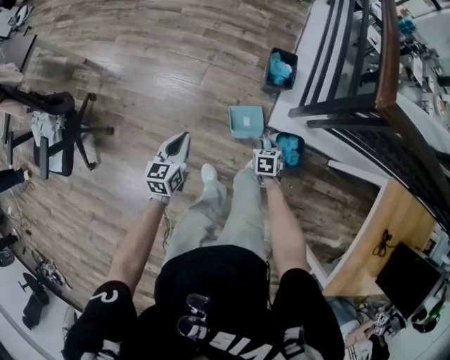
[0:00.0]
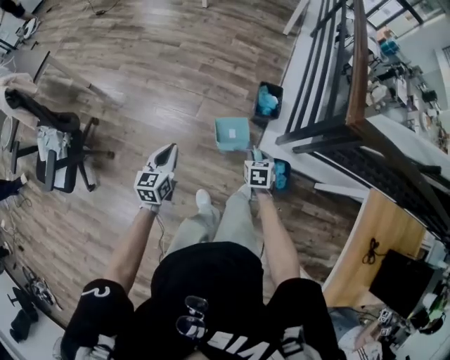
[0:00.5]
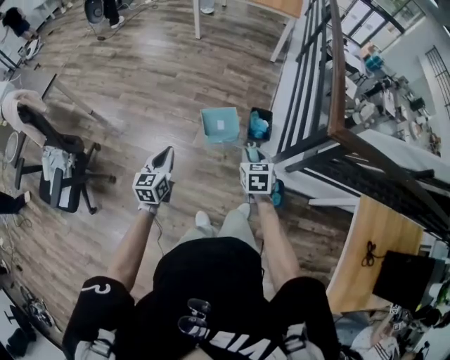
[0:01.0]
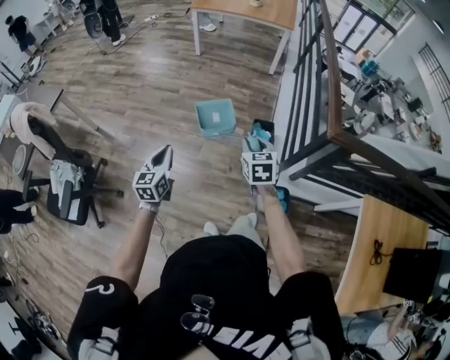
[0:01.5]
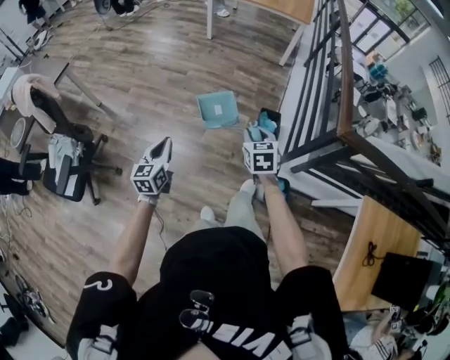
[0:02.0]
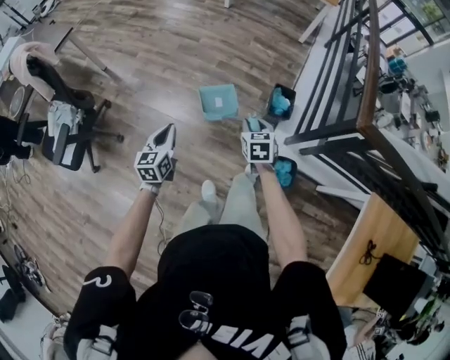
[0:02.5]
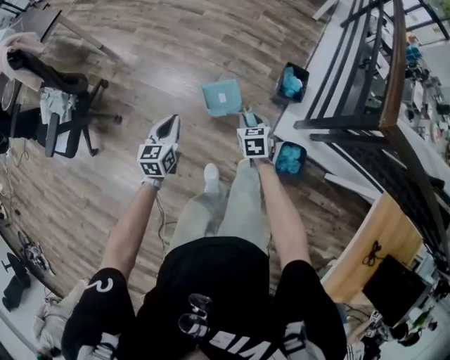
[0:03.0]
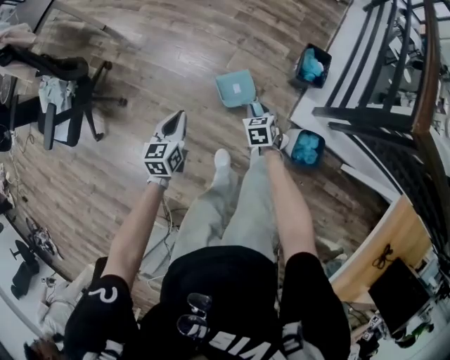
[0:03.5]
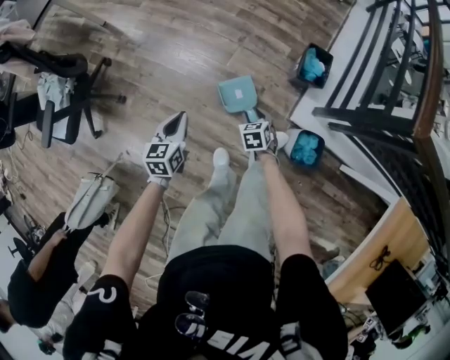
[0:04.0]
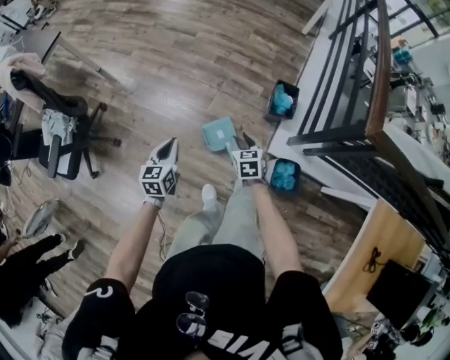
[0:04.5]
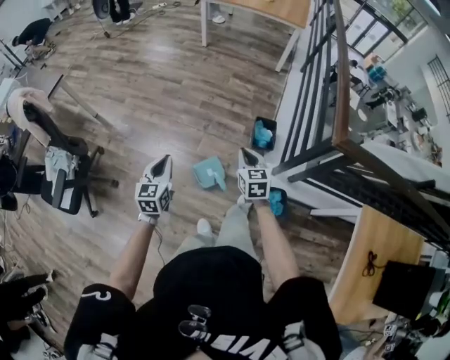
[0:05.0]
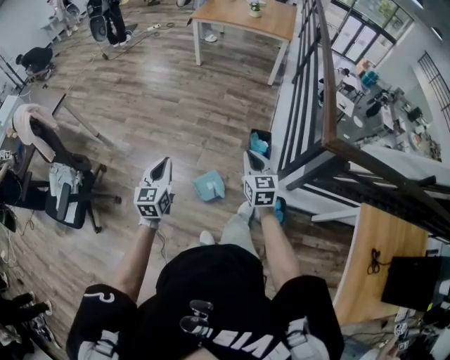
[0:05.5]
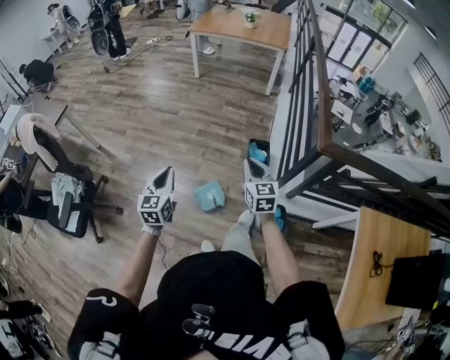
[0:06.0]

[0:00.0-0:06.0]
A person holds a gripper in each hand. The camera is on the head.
0:00.0 to 0:02.0: The right gripper goes some 40 cm upward and to the left, and rotates roughly 30 degrees; the left gripper goes some 25 cm upward and to the left.
0:02.0 to 0:04.0: The left gripper heads downward, covering approximately 25 cm, while the right gripper shifts approximately 40 cm downward, and changes its angle by roughly 20 degrees.
0:04.0 to 0:06.0: The left gripper moves upward, approximately 30 cm, and changes its angle by some 30 degrees, while the right gripper heads upward, covering about 50 cm, tips its fingers upward by roughly 40 degrees, and closes its fingers.

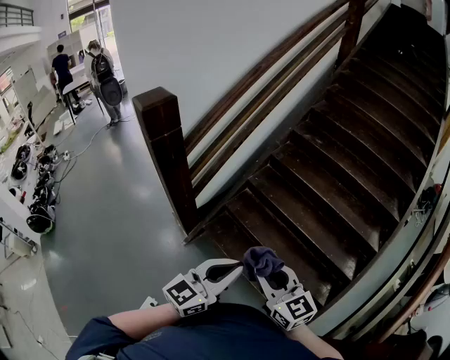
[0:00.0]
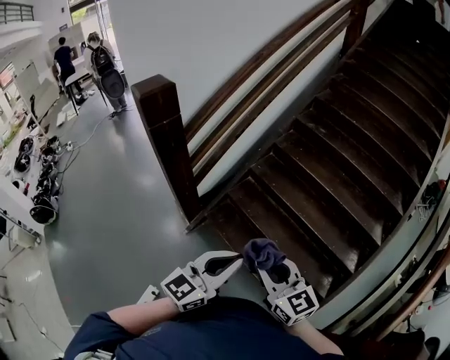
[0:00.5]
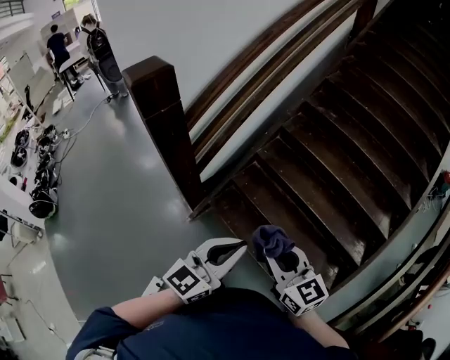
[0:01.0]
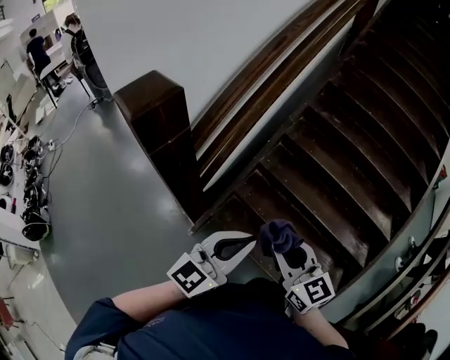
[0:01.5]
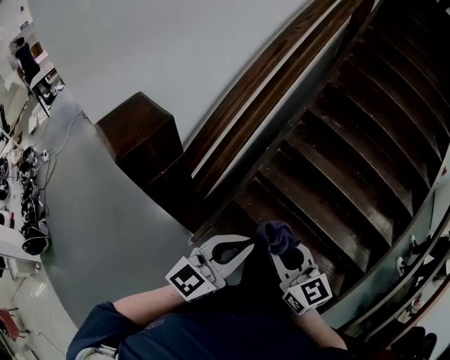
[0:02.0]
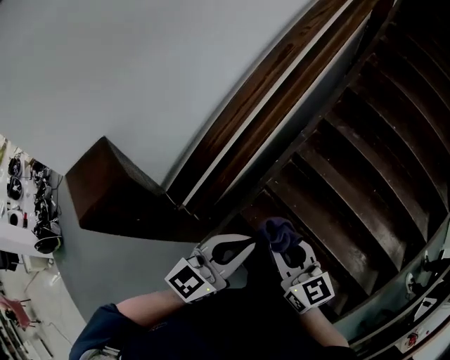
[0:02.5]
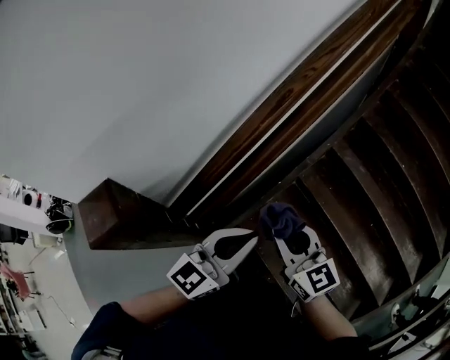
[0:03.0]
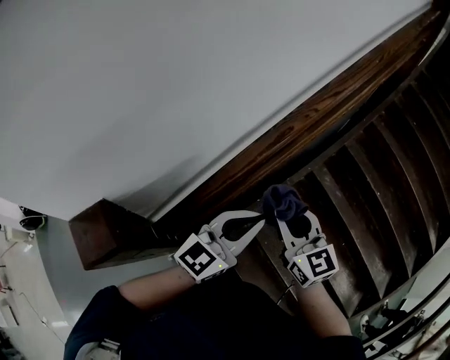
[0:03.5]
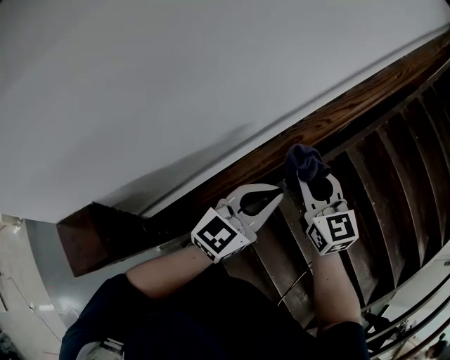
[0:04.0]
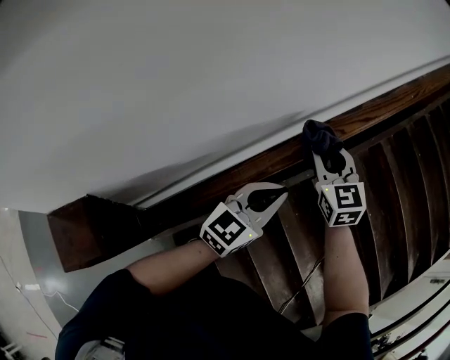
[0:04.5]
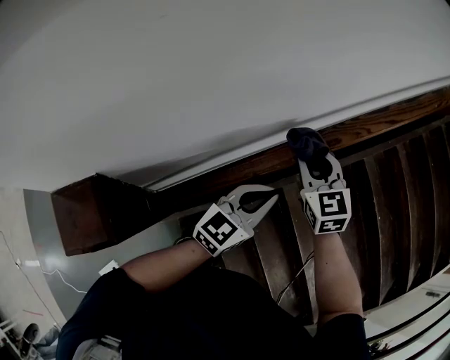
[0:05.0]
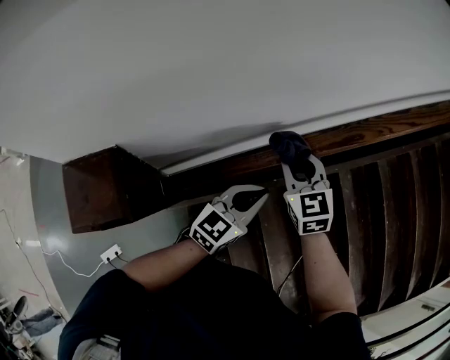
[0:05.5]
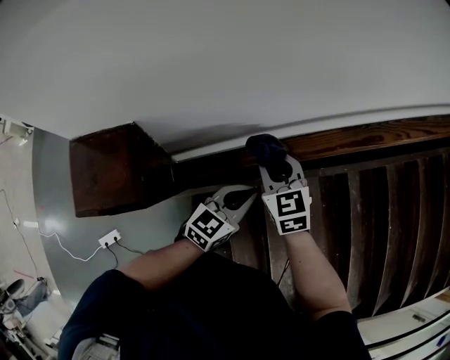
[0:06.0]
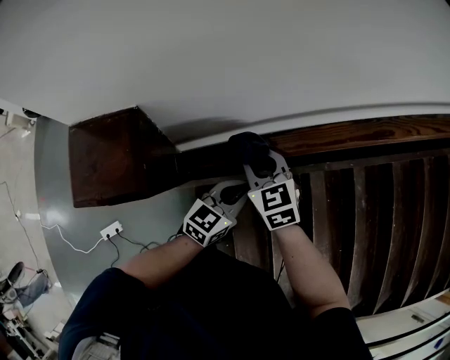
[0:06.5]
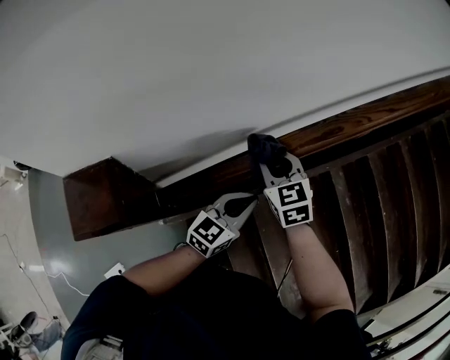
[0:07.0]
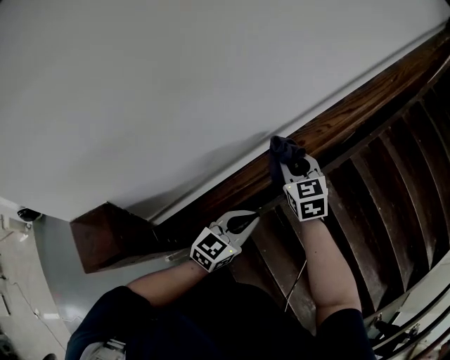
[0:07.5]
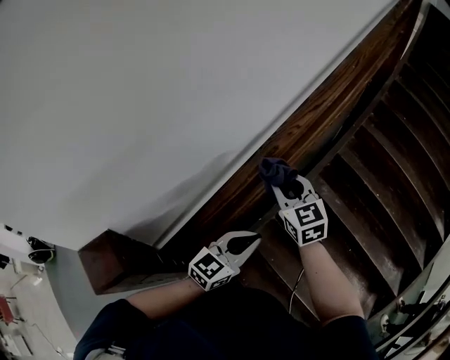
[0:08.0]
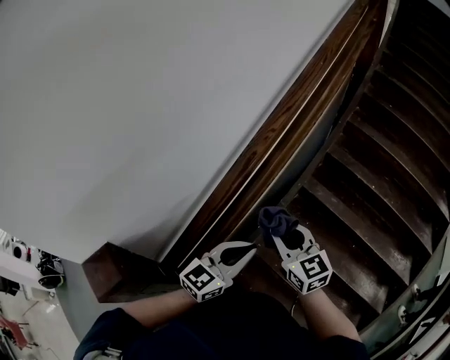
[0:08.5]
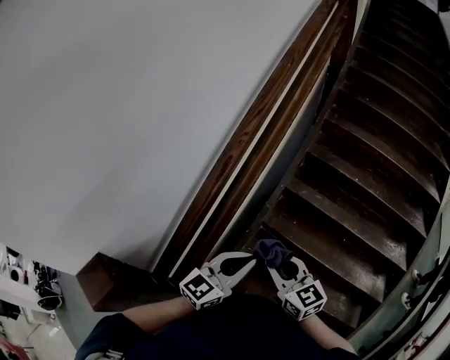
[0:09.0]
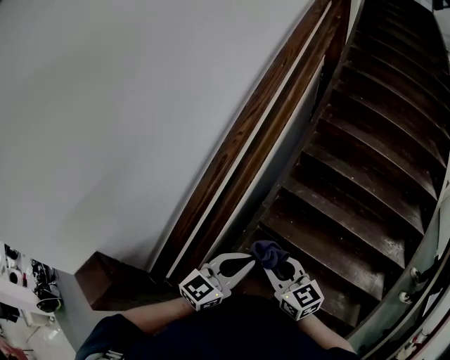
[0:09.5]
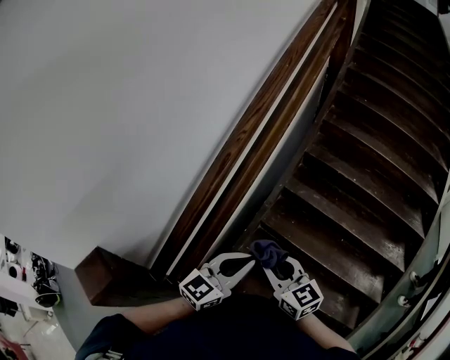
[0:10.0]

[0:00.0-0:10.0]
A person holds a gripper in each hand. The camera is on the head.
0:00.0 to 0:02.0: The grippers both shift forward and to the left by about 35 cm.
0:02.0 to 0:04.0: The two grippers travel together, forward, approximately 50 cm. The right gripper rotates roughly 20 degrees.
0:04.0 to 0:06.0: The right gripper shifts some 30 cm to the left and downward, and changes its angle by about 30 degrees. Meanwhile the left gripper goes roughly 25 cm downward and to the left, and turns by approximately 30 degrees.
0:06.0 to 0:08.0: The left gripper moves about 20 cm, and turns by about 30 degrees. Meanwhile the right gripper moves about 30 cm, and changes its angle by about 30 degrees.
0:08.0 to 0:10.0: The right gripper is displaced backward and to the right by some 25 cm, and turns by about 20 degrees. The left gripper goes about 10 cm to the right and backward.

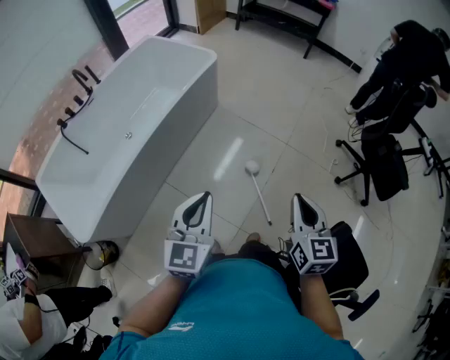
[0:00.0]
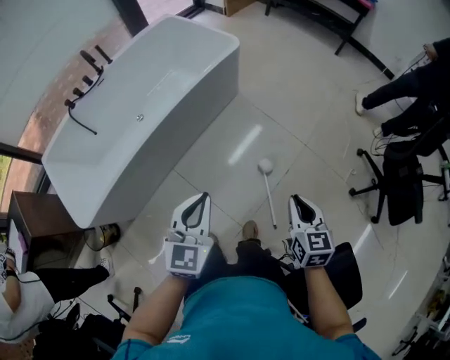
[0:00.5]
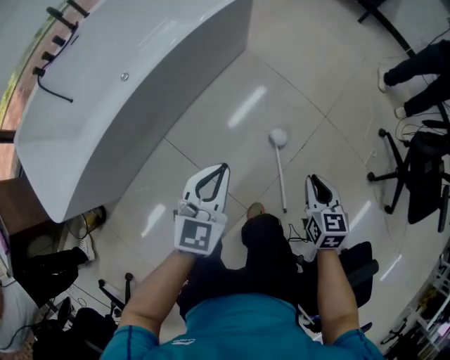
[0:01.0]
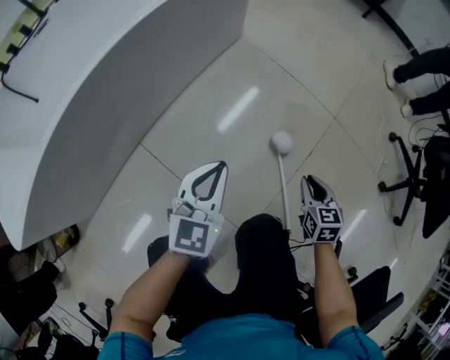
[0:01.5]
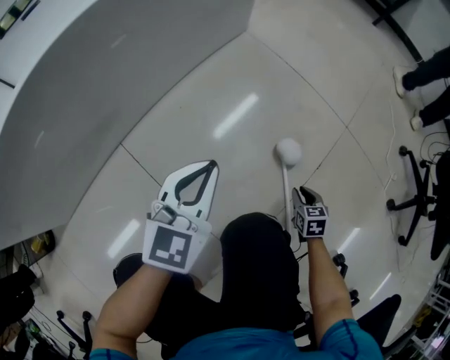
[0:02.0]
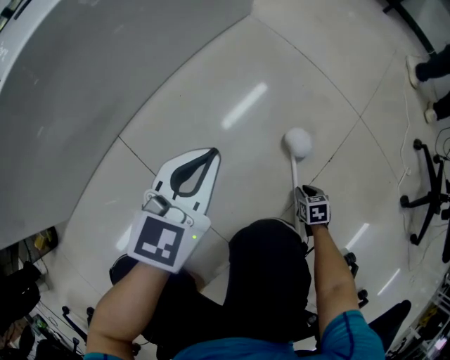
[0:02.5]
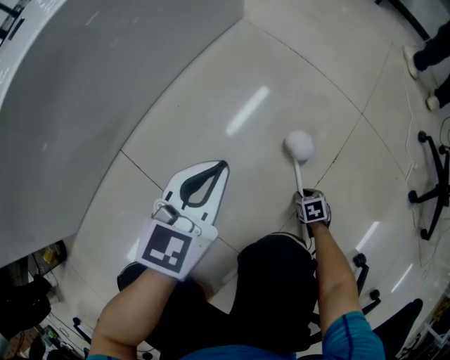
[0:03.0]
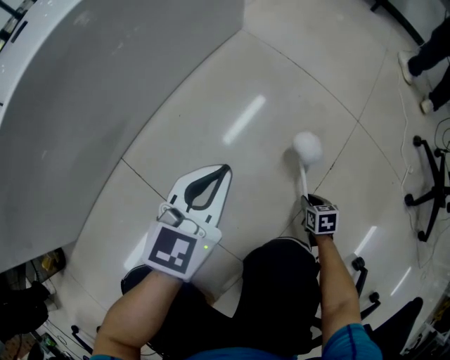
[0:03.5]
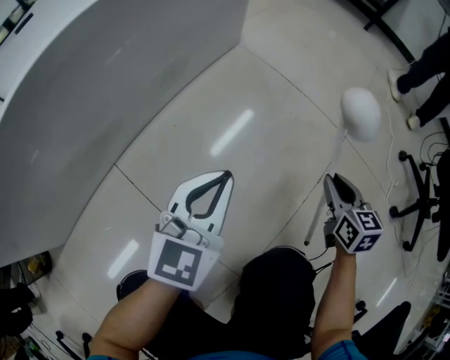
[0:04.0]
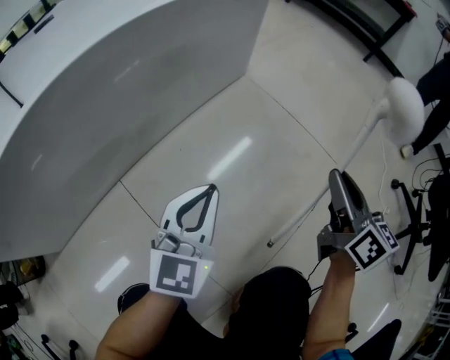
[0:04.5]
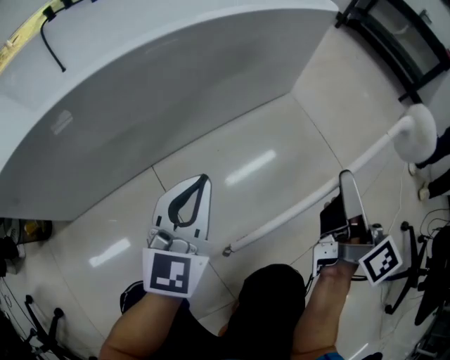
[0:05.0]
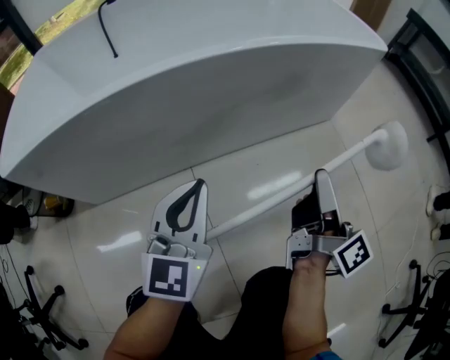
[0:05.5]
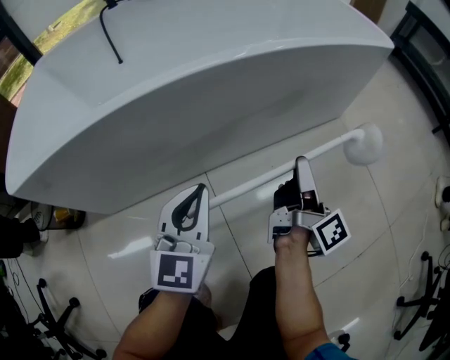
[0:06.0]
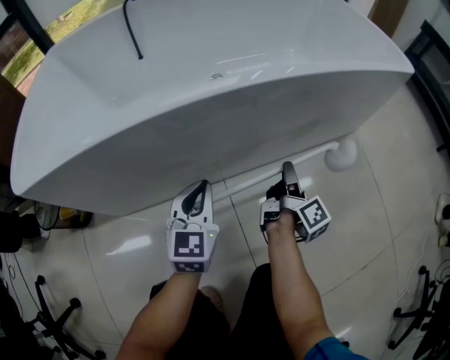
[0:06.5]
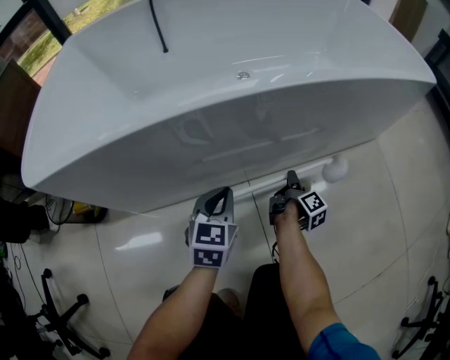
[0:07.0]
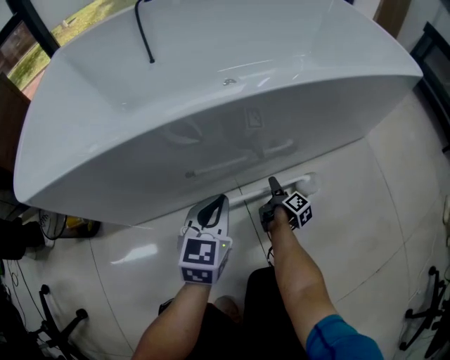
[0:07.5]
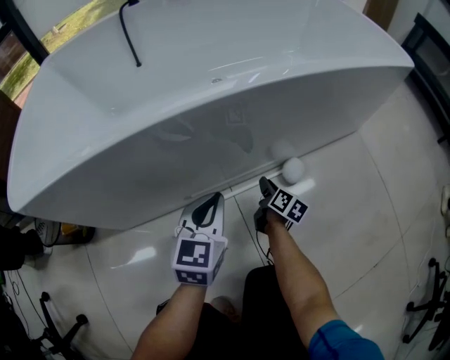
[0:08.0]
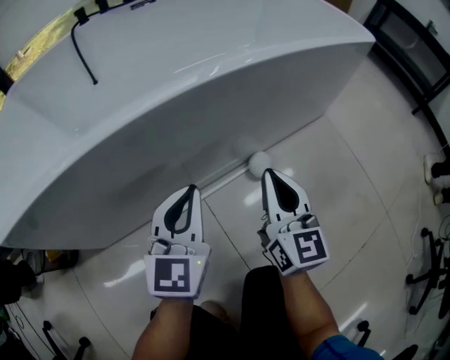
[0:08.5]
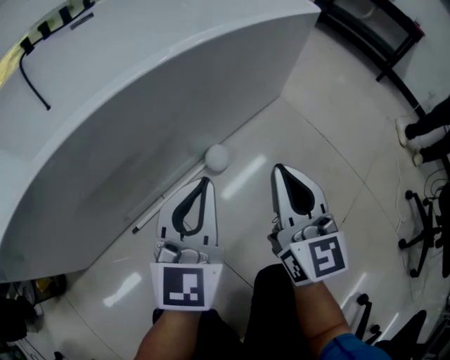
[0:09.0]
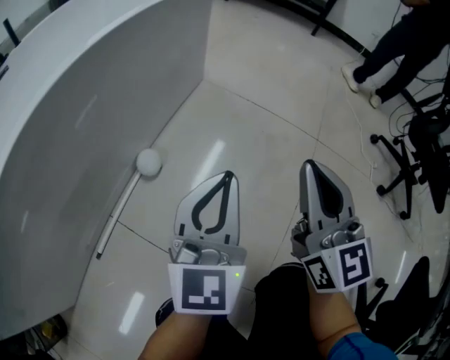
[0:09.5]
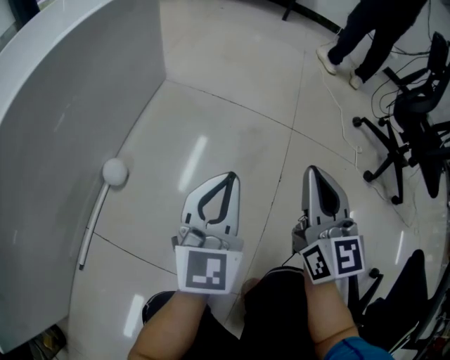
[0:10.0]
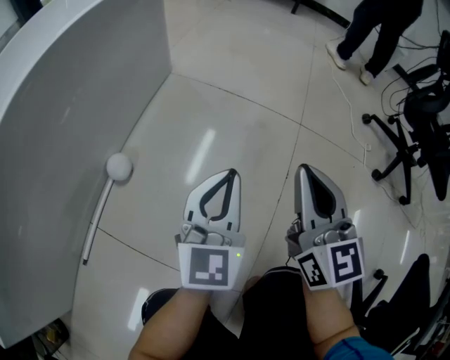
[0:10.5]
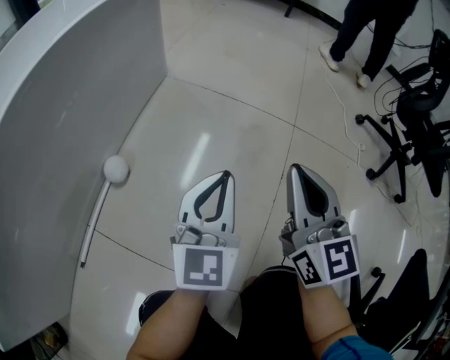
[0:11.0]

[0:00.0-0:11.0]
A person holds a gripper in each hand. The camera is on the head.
0:00.0 to 0:02.0: Both grippers travel together downward, about 70 cm. The right gripper points its fingers roughly 40 degrees further downward, and opens its fingers.
0:02.0 to 0:03.5: The right gripper goes about 10 cm downward, while the left gripper moves approximately 5 cm.
0:03.5 to 0:05.5: The right gripper heads upward, covering approximately 40 cm, and points its fingers about 80 degrees further upward; the left gripper shifts by about 30 cm, and turns by approximately 50 degrees.
0:05.5 to 0:07.5: The left gripper heads to the left and downward, covering roughly 25 cm. The right gripper heads downward and to the left, covering roughly 50 cm, tips its fingers downward by some 40 degrees, and opens up.
0:07.5 to 0:09.0: The left gripper shifts approximately 25 cm to the right and upward, and changes its angle by about 30 degrees; the right gripper moves upward, roughly 40 cm, rolls counterclockwise, seen from behind, by some 80 degrees, and closes.
0:09.0 to 0:11.0: The left gripper ends up about 35 cm from where it was, and rotates approximately 30 degrees. The right gripper ends up approximately 35 cm from where it was, and changes its angle by approximately 30 degrees.
